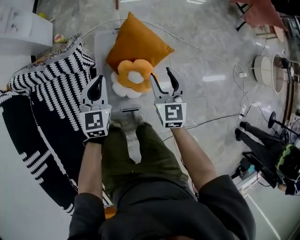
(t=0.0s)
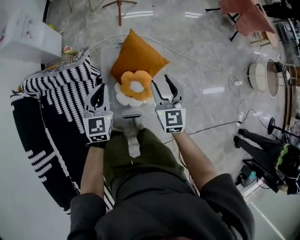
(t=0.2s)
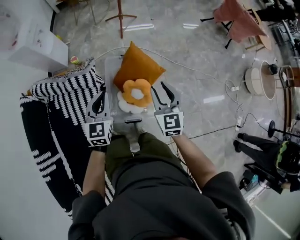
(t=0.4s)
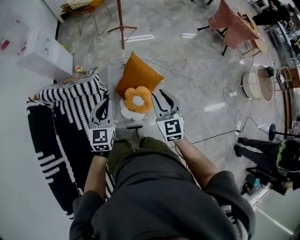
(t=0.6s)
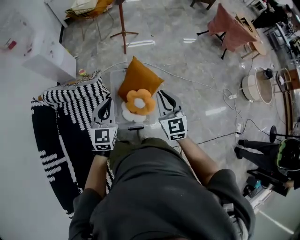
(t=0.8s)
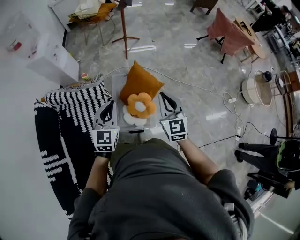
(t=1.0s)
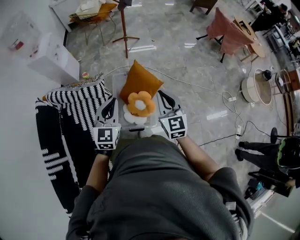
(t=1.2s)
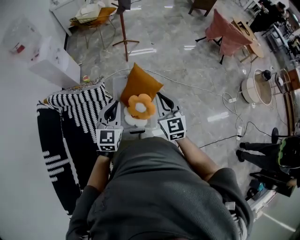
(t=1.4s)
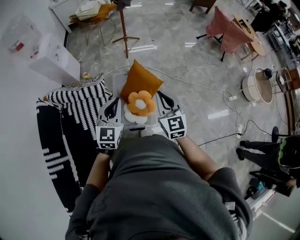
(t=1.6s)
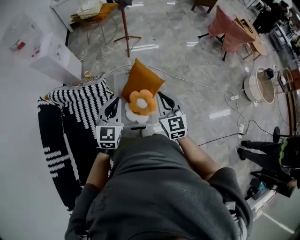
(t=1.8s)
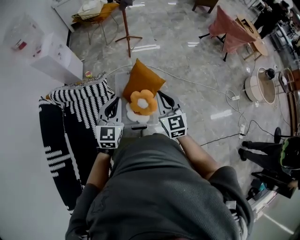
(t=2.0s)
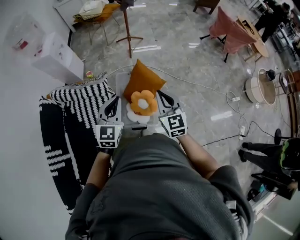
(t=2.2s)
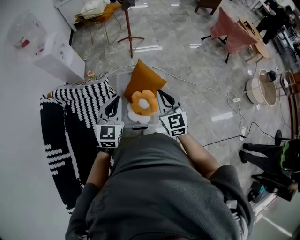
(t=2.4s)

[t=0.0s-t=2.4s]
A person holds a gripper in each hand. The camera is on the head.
t=0.0s to t=1.2s: The right gripper shifts approximately 35 cm upward, and closes up, while the left gripper moves upward and backward, roughly 35 cm.
t=1.2s to t=2.4s: The grippers move only a little.

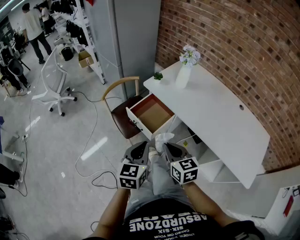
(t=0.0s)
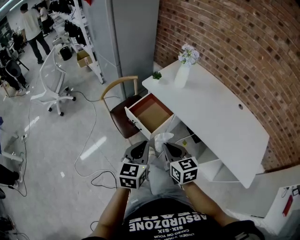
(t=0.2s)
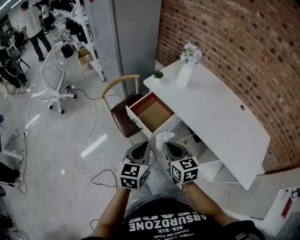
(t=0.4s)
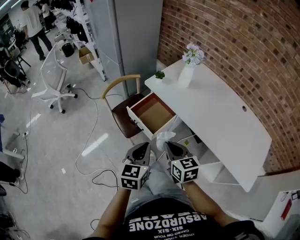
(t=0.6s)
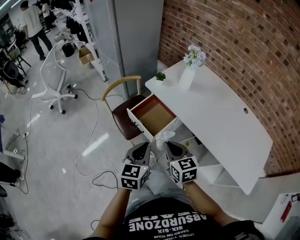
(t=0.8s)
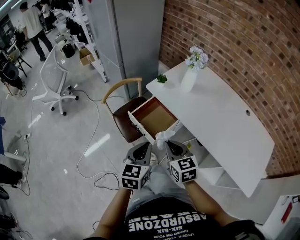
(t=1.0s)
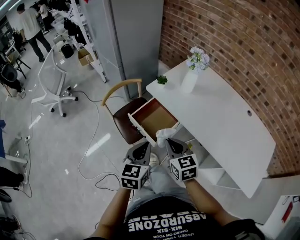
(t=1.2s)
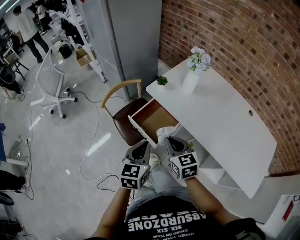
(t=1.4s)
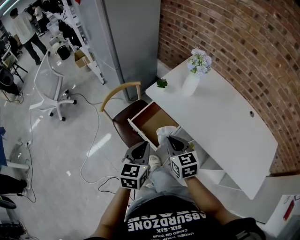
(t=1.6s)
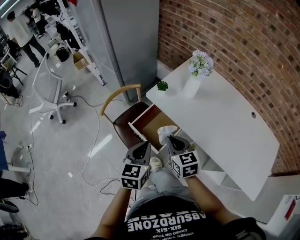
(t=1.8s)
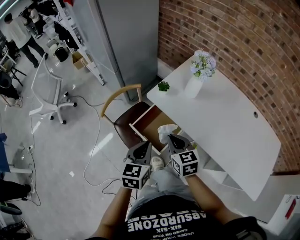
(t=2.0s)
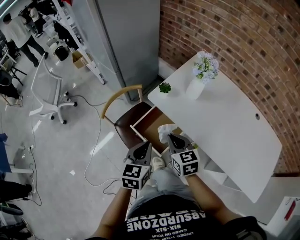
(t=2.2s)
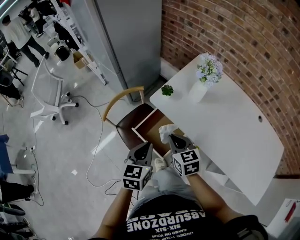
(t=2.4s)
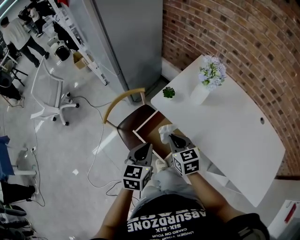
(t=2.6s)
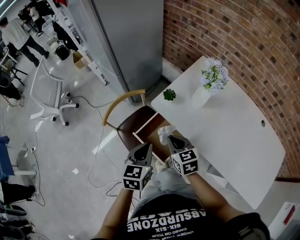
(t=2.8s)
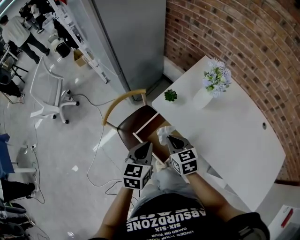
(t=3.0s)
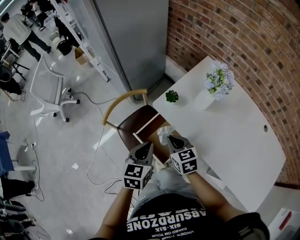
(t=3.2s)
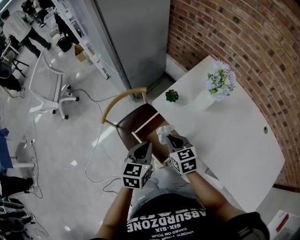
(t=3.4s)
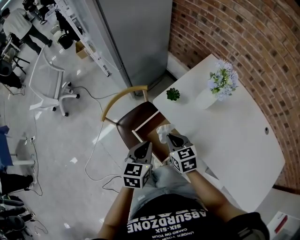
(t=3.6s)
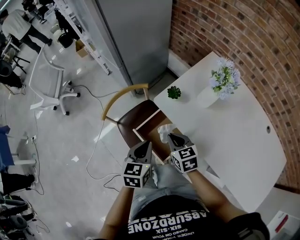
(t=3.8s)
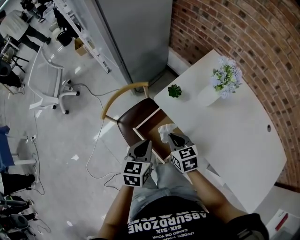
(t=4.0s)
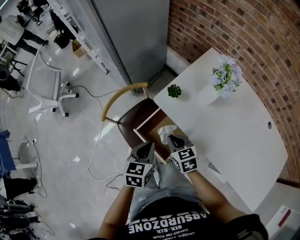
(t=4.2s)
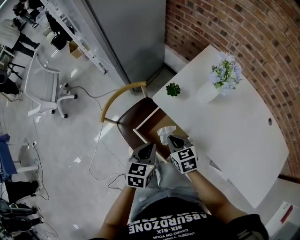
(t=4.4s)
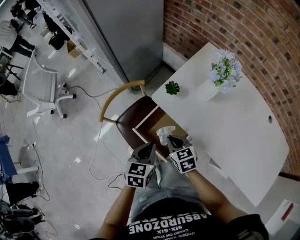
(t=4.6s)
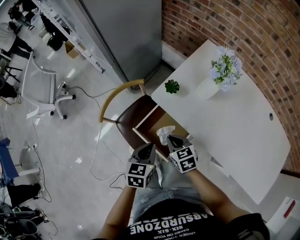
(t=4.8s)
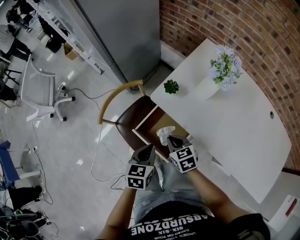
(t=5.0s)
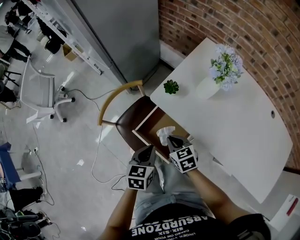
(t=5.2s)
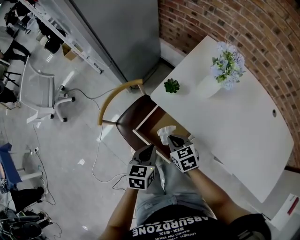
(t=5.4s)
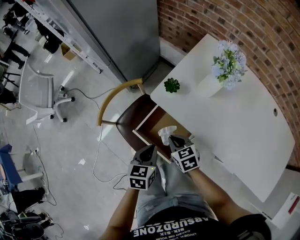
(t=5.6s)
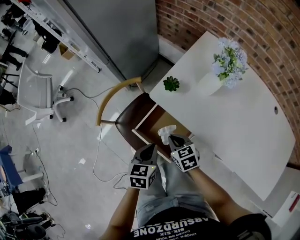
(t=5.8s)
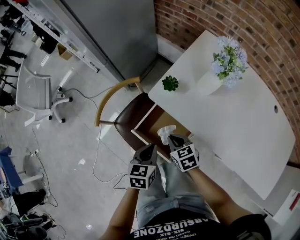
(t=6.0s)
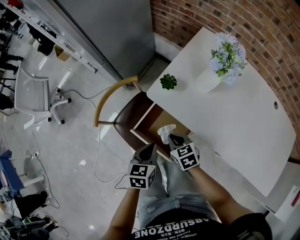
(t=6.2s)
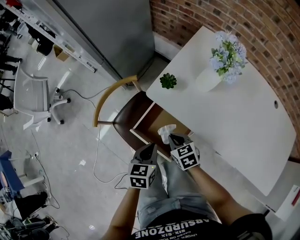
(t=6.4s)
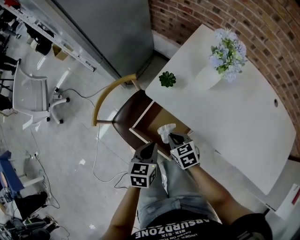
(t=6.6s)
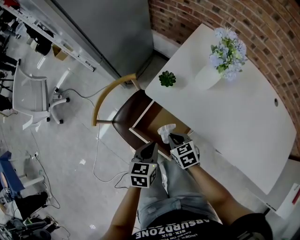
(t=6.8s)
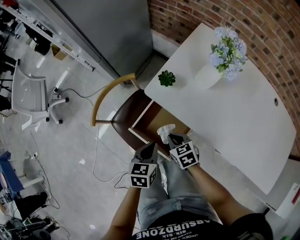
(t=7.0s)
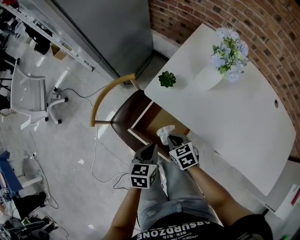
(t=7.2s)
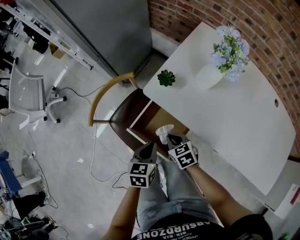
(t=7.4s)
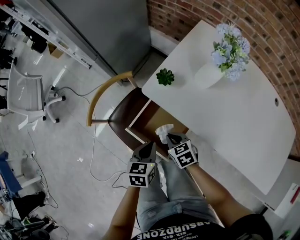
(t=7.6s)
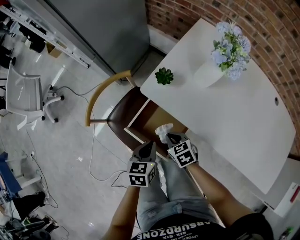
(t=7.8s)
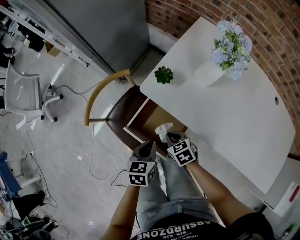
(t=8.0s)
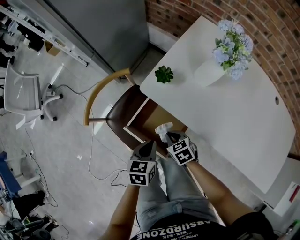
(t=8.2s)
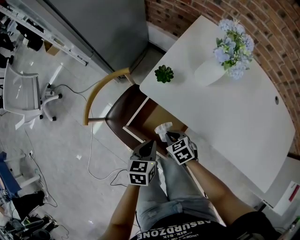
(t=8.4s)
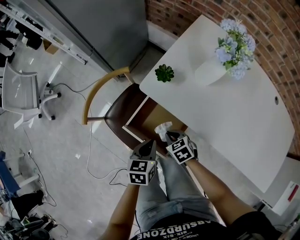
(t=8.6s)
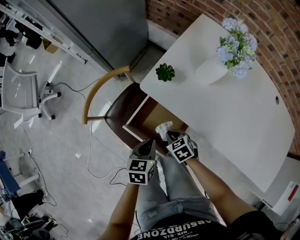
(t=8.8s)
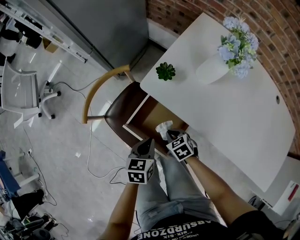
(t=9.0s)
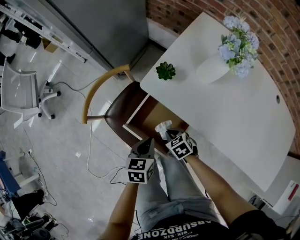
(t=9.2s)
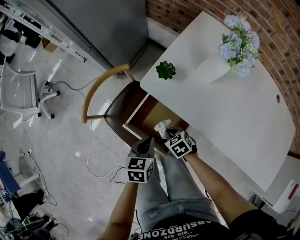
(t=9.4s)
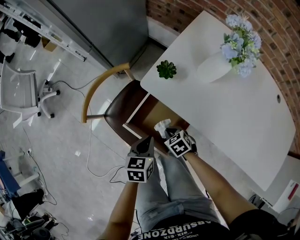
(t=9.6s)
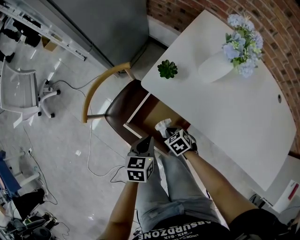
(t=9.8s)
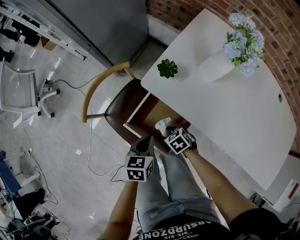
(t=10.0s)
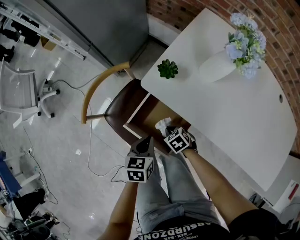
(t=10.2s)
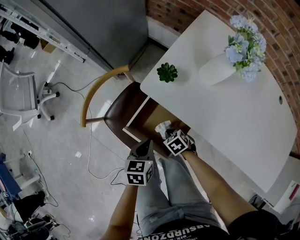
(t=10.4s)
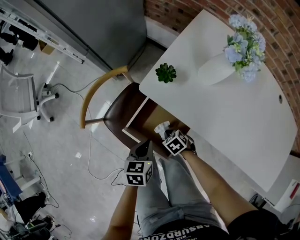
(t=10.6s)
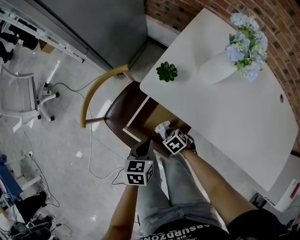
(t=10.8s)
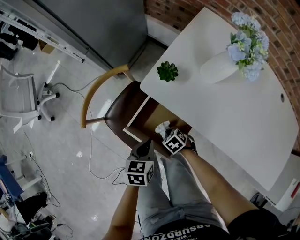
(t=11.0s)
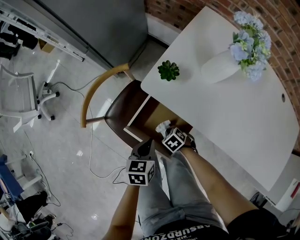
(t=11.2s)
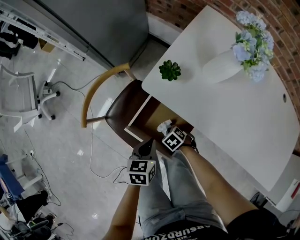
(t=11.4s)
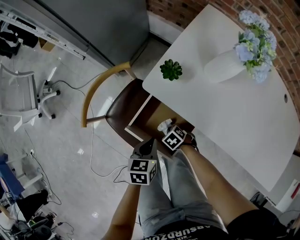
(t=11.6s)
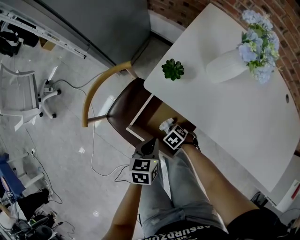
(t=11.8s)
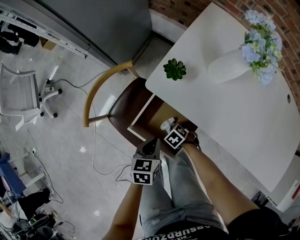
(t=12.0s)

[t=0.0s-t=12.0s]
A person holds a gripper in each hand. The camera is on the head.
t=0.0s to t=1.6s: The grippers both shift forward by about 15 cm.
t=1.6s to t=3.0s: The right gripper travels forward and downward by roughly 15 cm, while the left gripper is displaced forward by about 15 cm.
t=3.0s to t=4.4s: The grippers both shift downward by roughly 5 cm.
t=4.4s to t=6.0s: The two grippers go some 5 cm downward.
t=6.0s to t=7.6s: The right gripper heads downward, covering roughly 5 cm.
t=7.6s to t=9.0s: The right gripper goes roughly 5 cm downward.
t=9.0s to t=10.4s: The right gripper is displaced downward by about 5 cm.
t=10.4s to t=12.0s: The right gripper shifts roughly 5 cm downward.

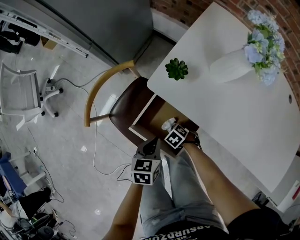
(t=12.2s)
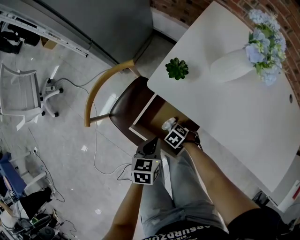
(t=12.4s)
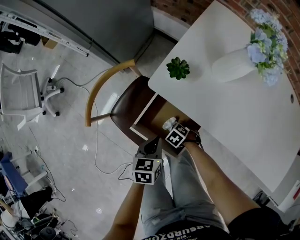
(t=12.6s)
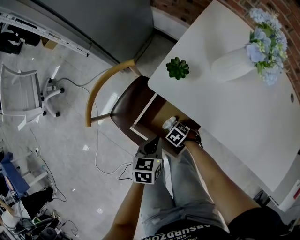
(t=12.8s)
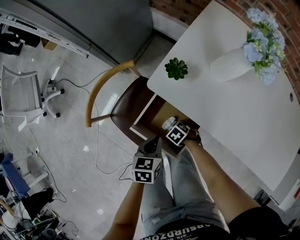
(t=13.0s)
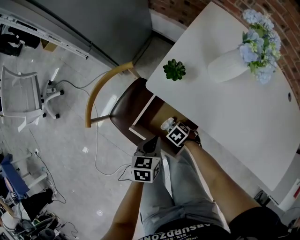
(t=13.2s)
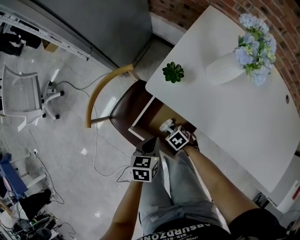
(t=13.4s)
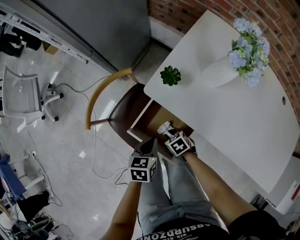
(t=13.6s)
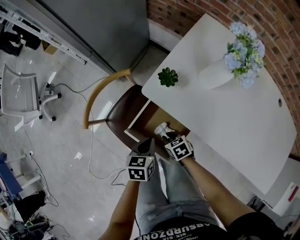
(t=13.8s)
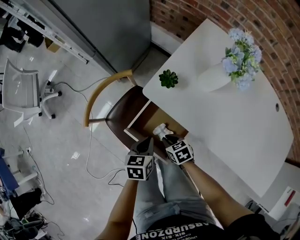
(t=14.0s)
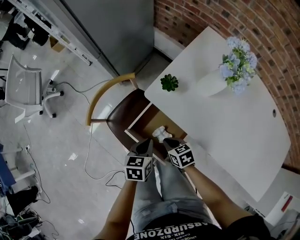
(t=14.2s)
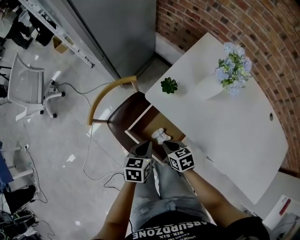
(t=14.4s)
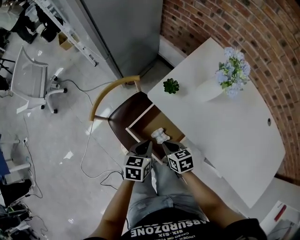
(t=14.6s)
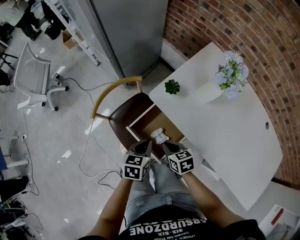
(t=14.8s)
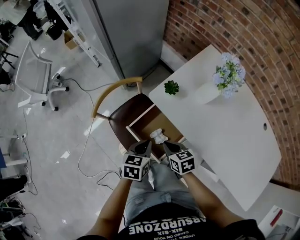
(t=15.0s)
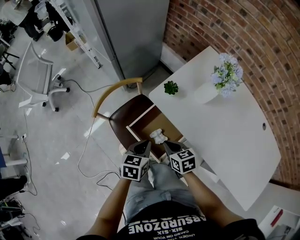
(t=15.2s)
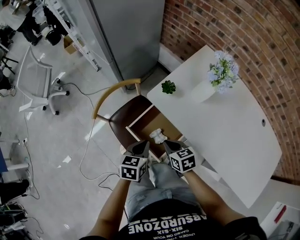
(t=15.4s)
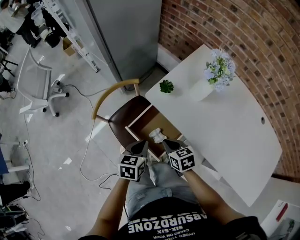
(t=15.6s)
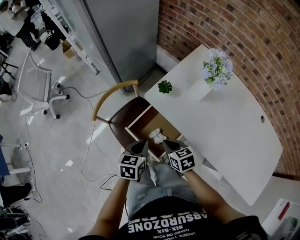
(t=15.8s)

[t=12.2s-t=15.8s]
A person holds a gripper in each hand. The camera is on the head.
t=12.2s to t=14.0s: The right gripper is displaced upward by about 15 cm, and turns by about 30 degrees.
t=14.0s to t=15.8s: The two grippers go about 15 cm upward.

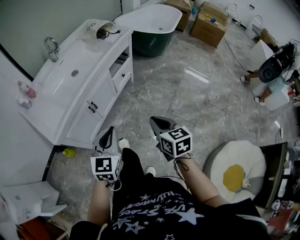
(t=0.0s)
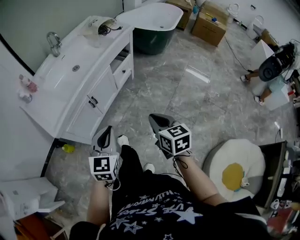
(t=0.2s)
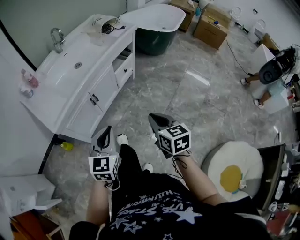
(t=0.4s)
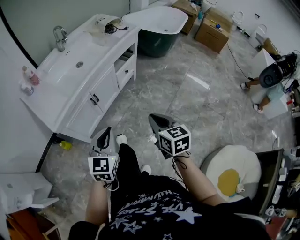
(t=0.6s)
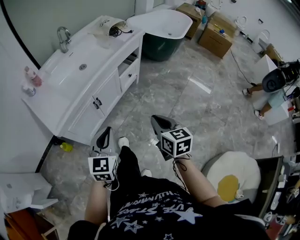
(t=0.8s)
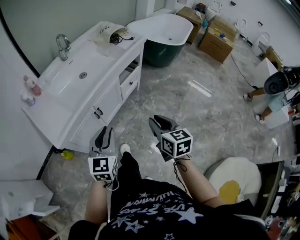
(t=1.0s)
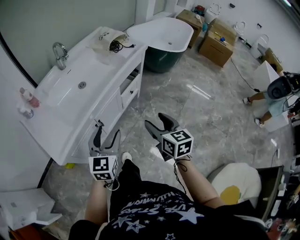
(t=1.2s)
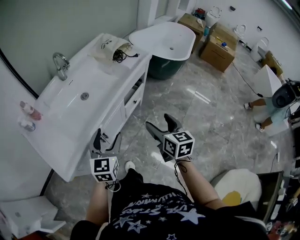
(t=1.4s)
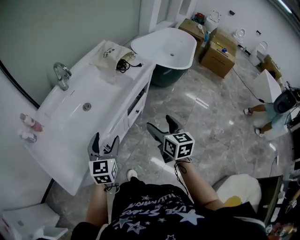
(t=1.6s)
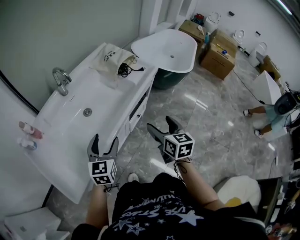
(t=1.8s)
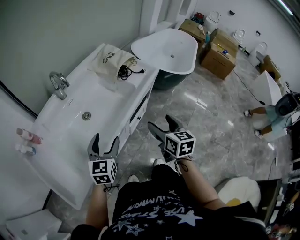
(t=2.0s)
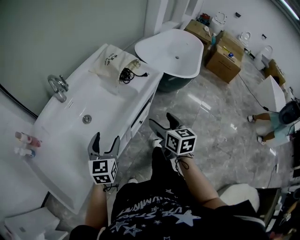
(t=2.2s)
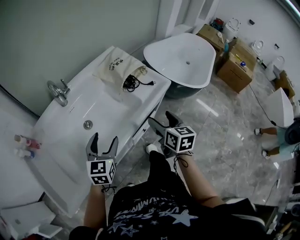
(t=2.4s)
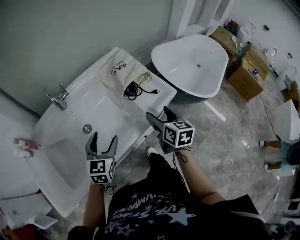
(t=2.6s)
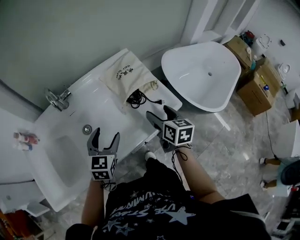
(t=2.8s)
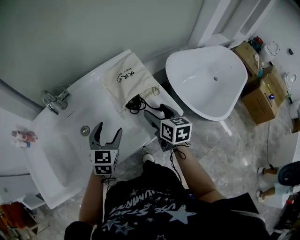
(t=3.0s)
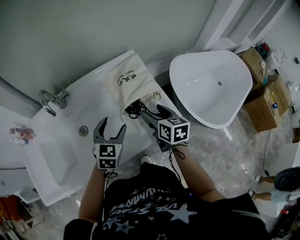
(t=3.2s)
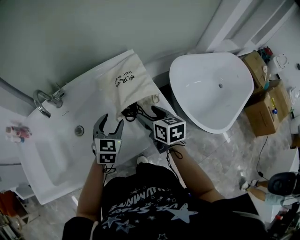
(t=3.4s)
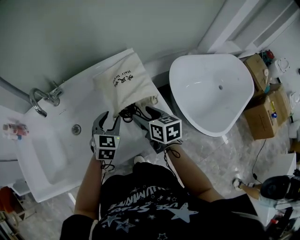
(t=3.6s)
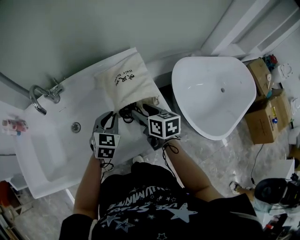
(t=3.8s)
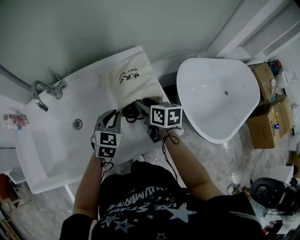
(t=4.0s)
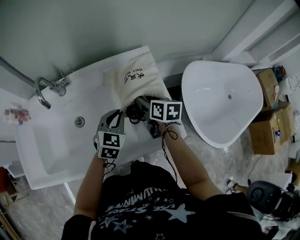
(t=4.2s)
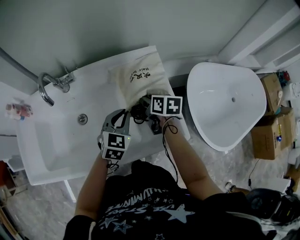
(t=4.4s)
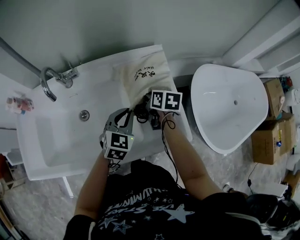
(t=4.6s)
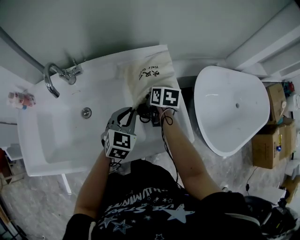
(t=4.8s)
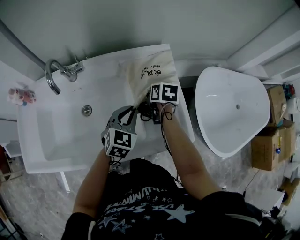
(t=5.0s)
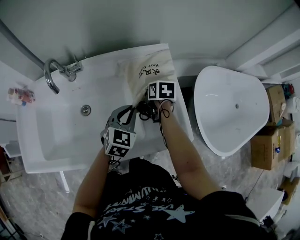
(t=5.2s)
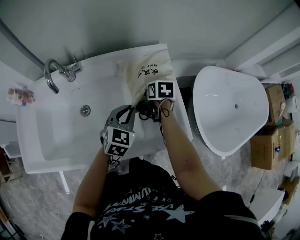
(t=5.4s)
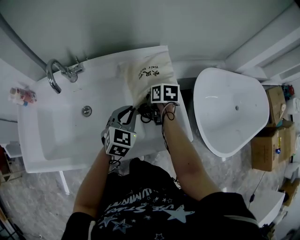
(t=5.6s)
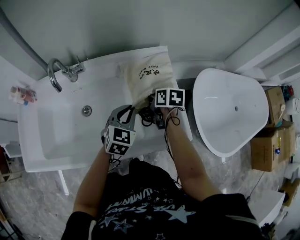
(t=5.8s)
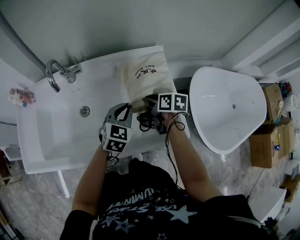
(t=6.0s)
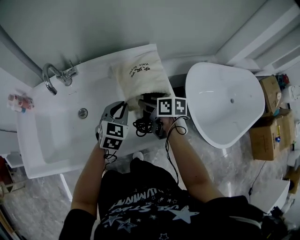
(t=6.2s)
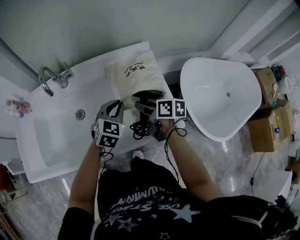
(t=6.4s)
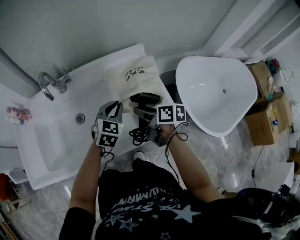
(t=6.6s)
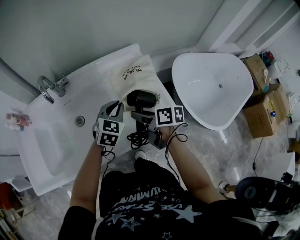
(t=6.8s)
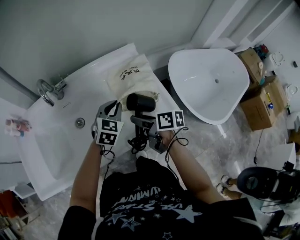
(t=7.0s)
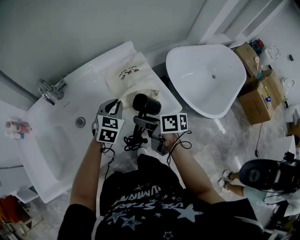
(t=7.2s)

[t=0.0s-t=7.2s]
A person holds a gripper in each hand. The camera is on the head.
t=0.0s to t=1.4s: The two grippers go roughly 25 cm forward. The left gripper opens up; the right gripper opens up.
t=1.4s to t=2.8s: Both grippers move forward, some 40 cm.
t=2.8s to t=4.4s: The left gripper heads forward, to the right and downward, covering some 20 cm, and closes. The right gripper is displaced forward and downward by roughly 20 cm, and changes its angle by some 30 degrees.
t=4.4s to t=5.8s: The grippers move only a little.
t=5.8s to t=7.2s: The right gripper moves backward, roughly 20 cm, and turns by some 30 degrees.
